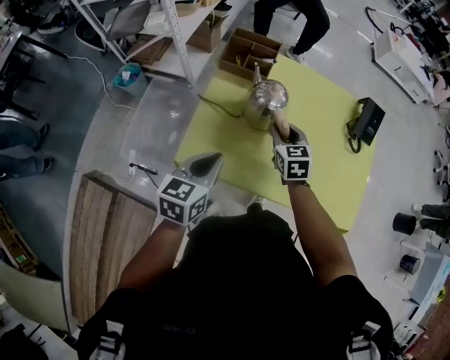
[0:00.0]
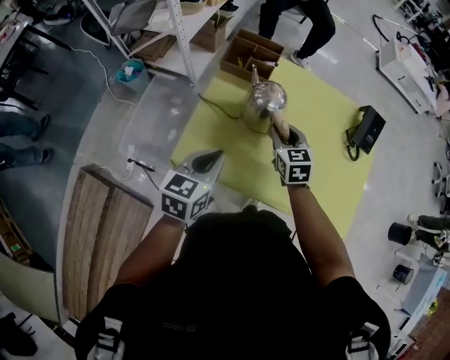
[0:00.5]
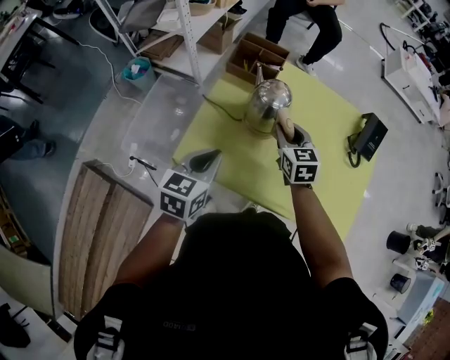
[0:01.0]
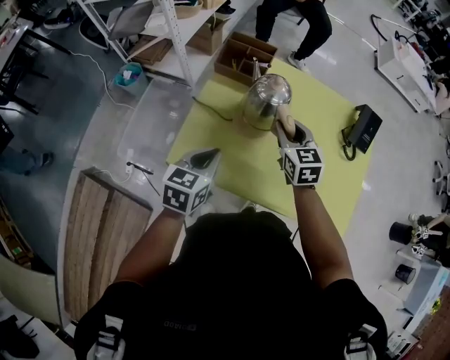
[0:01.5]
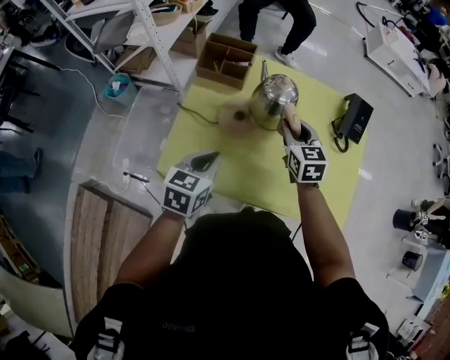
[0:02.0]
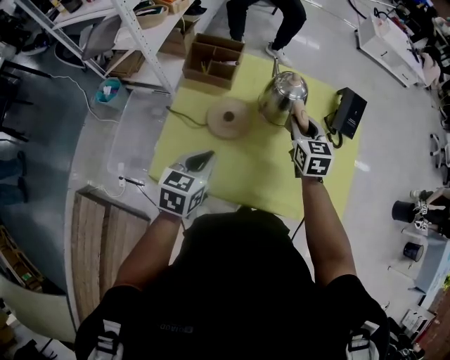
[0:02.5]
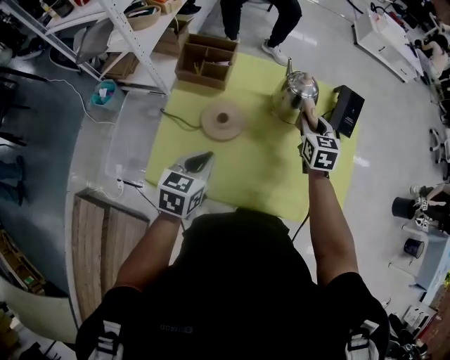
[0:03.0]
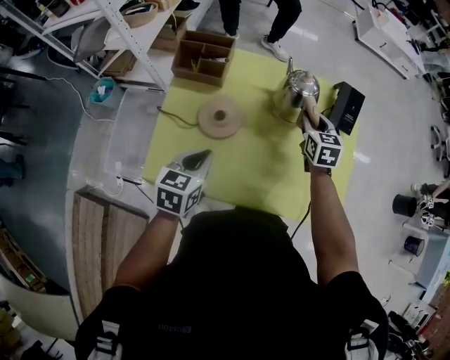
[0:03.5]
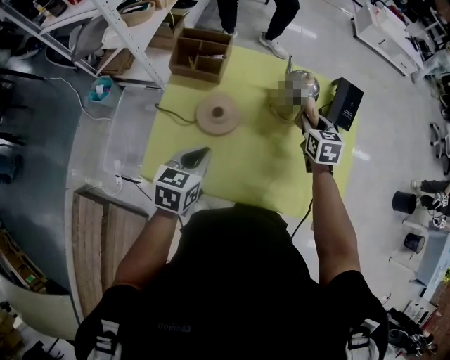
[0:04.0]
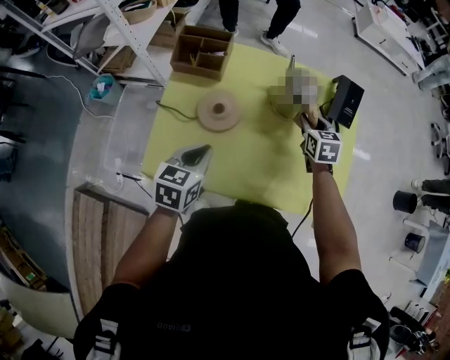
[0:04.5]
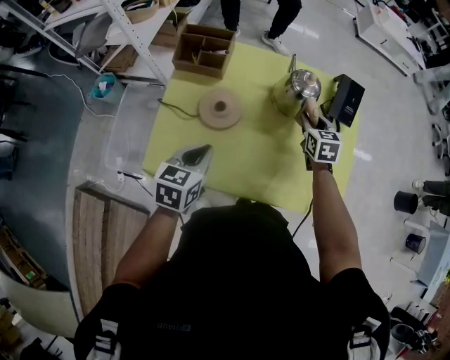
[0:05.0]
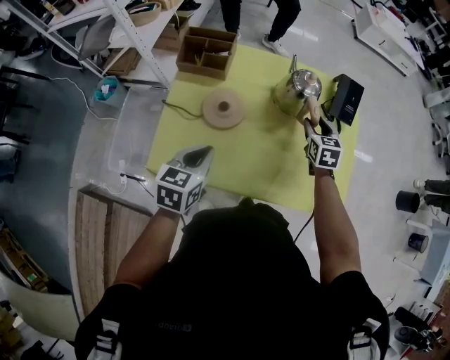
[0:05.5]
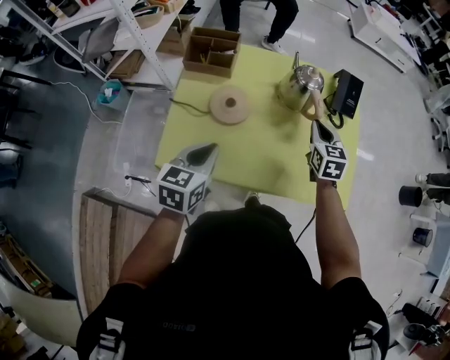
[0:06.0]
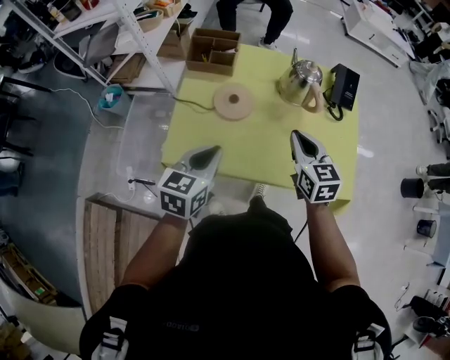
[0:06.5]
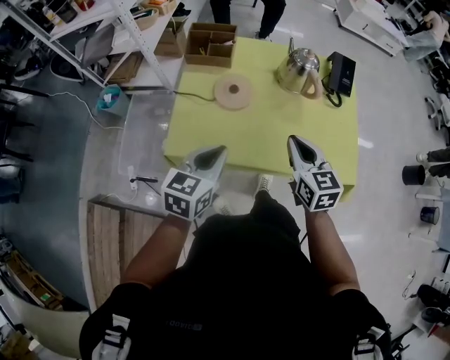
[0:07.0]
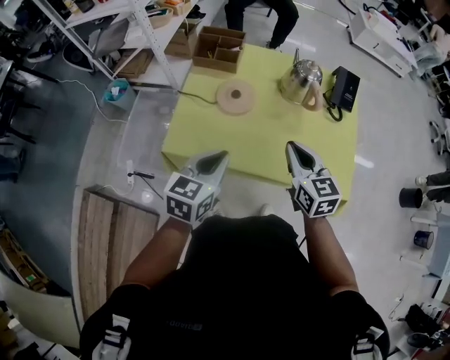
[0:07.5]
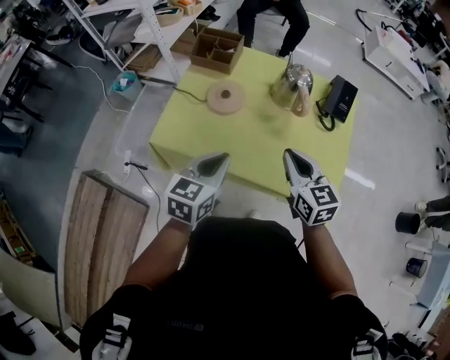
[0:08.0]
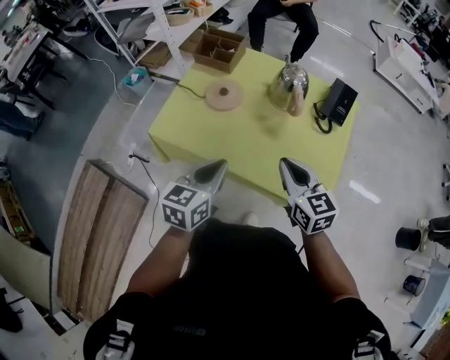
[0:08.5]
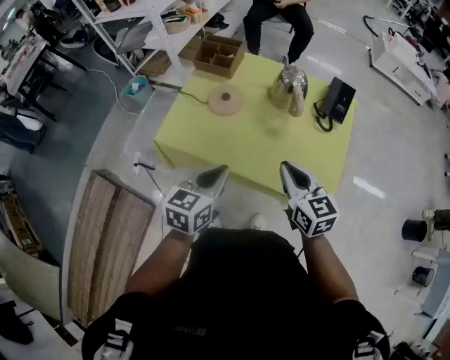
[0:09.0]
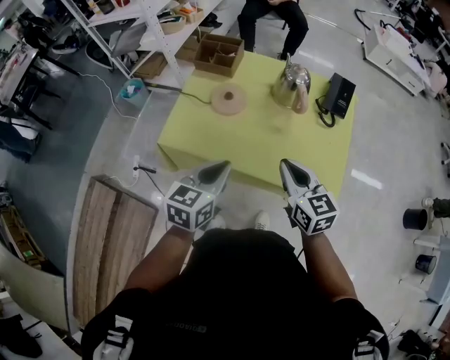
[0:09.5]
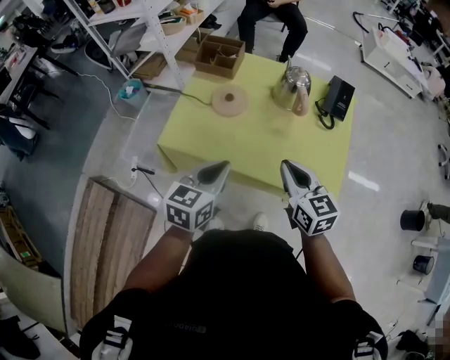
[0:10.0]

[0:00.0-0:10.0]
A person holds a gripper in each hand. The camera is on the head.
0:00.0 to 0:02.0: The two grippers go approximately 10 cm to the right.
0:02.0 to 0:04.0: The left gripper changes place by some 5 cm, while the right gripper goes about 15 cm to the right, forward and downward.
0:04.0 to 0:06.0: The right gripper shifts some 10 cm backward, and closes, while the left gripper travels backward by some 5 cm.
0:06.0 to 0:08.0: The left gripper heads to the right and backward, covering about 15 cm. Meanwhile the right gripper travels backward and upward by approximately 20 cm, and turns by about 30 degrees.
0:08.0 to 0:10.0: The left gripper shifts by some 5 cm; the right gripper heads backward, covering about 5 cm.

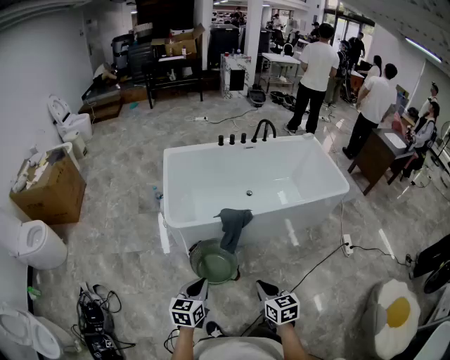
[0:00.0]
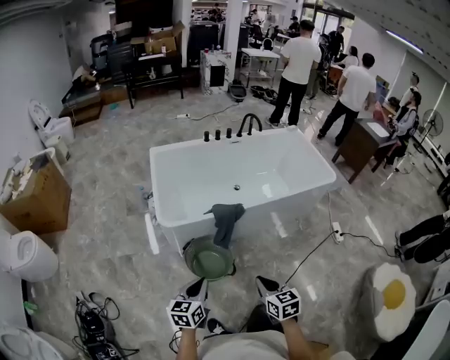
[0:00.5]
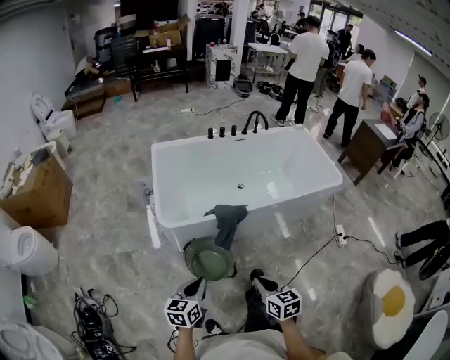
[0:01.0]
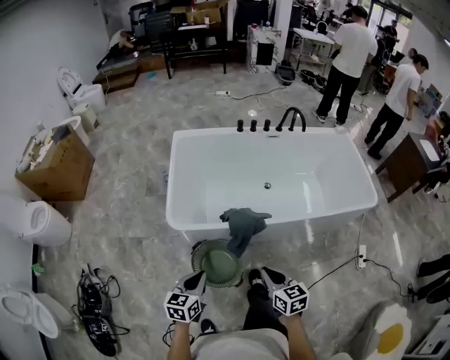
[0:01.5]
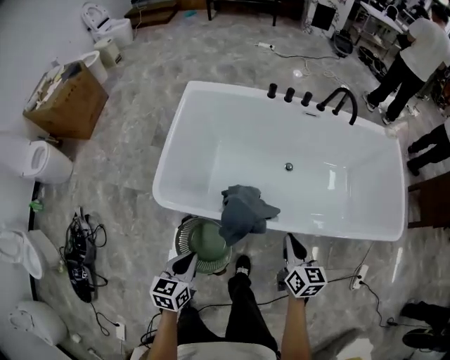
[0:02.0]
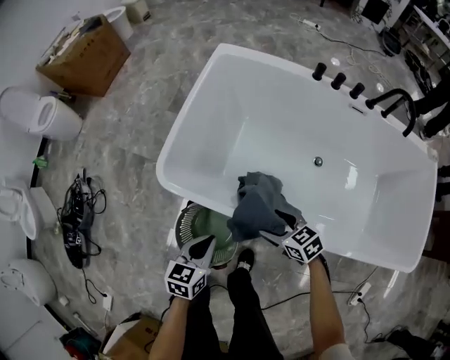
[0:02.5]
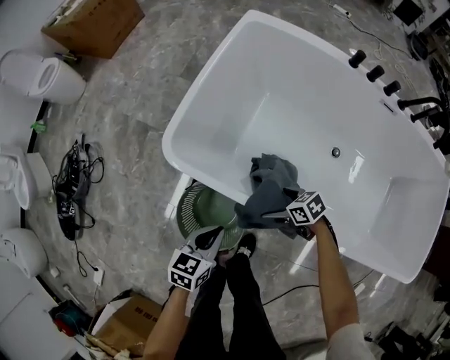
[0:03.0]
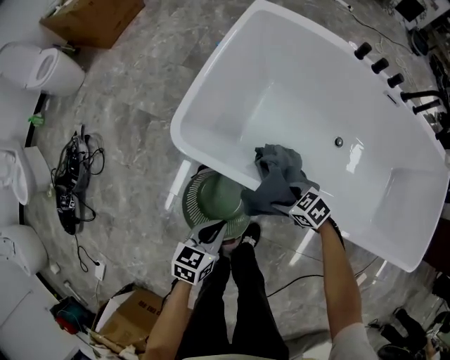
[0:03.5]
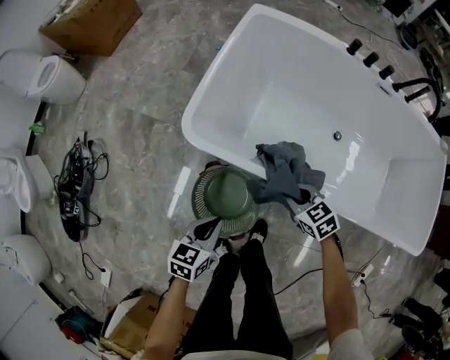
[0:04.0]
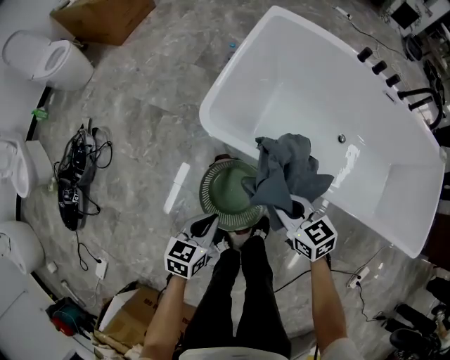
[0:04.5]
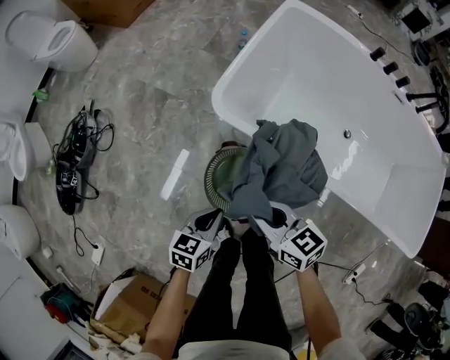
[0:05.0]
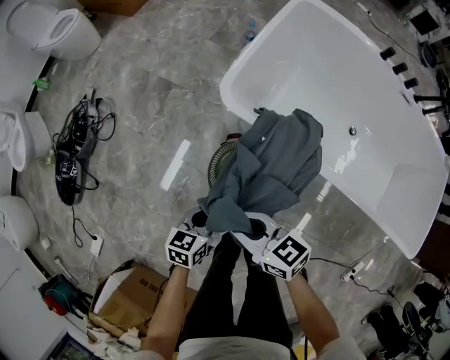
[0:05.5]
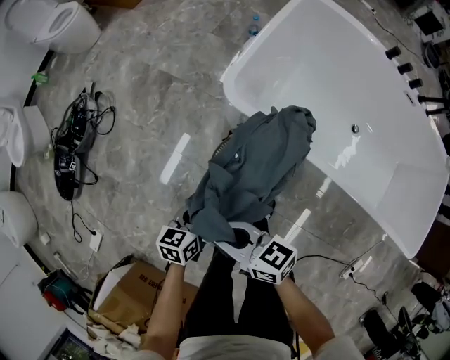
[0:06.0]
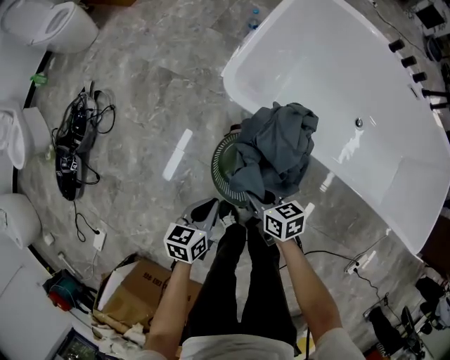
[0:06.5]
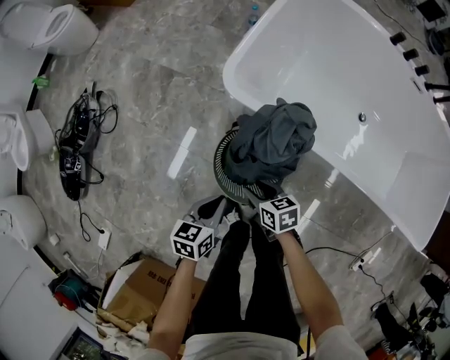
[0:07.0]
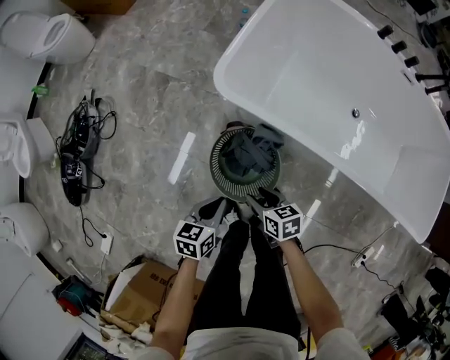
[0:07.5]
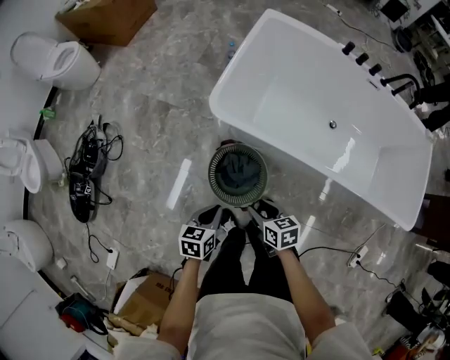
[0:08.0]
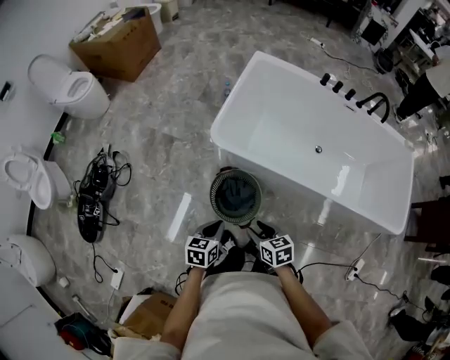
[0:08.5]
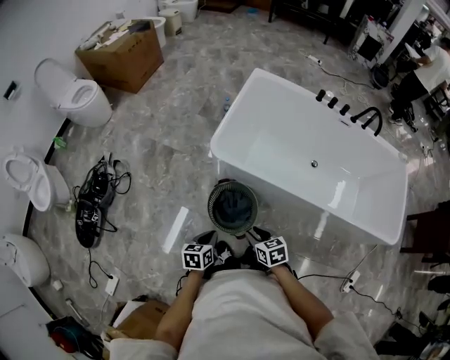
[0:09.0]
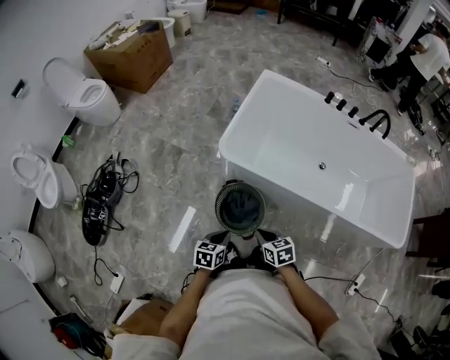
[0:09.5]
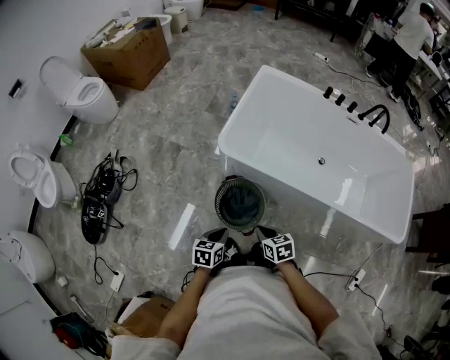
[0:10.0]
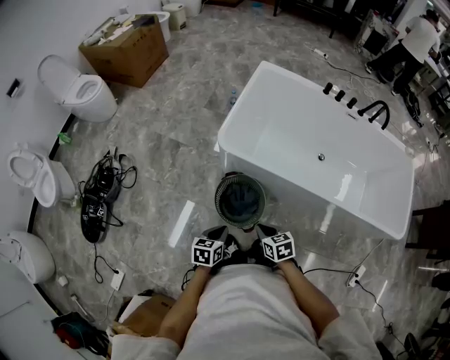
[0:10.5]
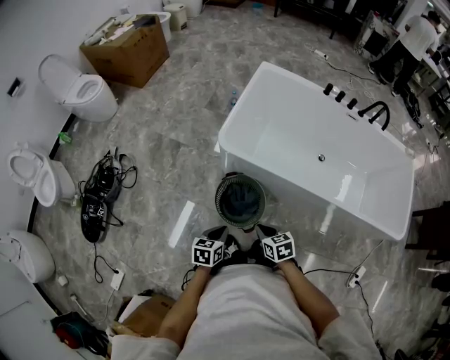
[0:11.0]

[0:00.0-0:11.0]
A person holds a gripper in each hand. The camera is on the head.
0:00.0 to 0:02.0: The right gripper travels forward by approximately 50 cm; the left gripper shifts roughly 30 cm forward and downward, and changes its angle by some 20 degrees.
0:02.0 to 0:03.5: The right gripper shifts about 30 cm downward, tips its fingers downward by approximately 30 degrees, and opens up; the left gripper heads downward, covering roughly 20 cm.
0:03.5 to 0:05.5: The right gripper goes some 35 cm to the left and upward, tilts its fingers roughly 30 degrees upward, and closes its fingers. The left gripper is displaced to the left by about 15 cm.
0:05.5 to 0:07.5: The right gripper shifts some 20 cm downward and to the right, and rotates approximately 30 degrees.
0:07.5 to 0:09.0: The right gripper is displaced upward by some 20 cm, while the left gripper moves upward and backward, some 15 cm.
0:09.0 to 0:11.0: The grippers make only small movements.

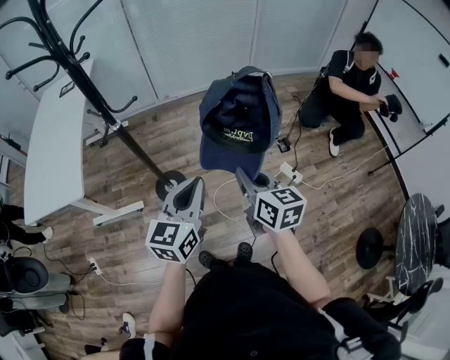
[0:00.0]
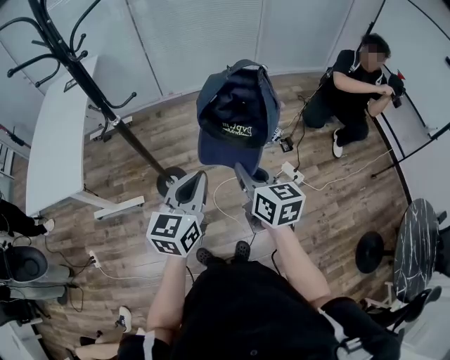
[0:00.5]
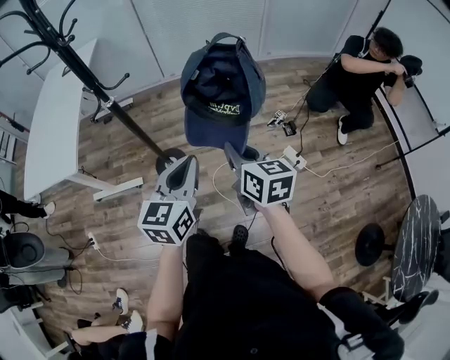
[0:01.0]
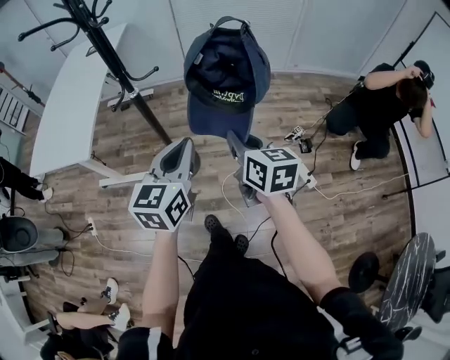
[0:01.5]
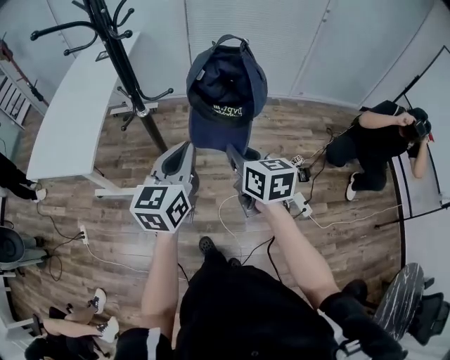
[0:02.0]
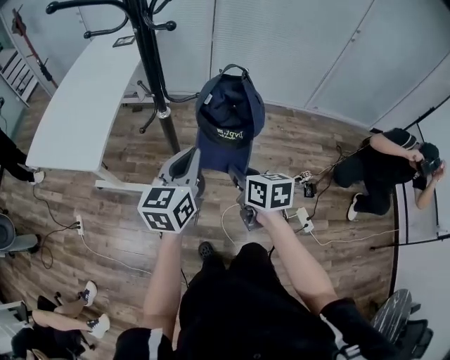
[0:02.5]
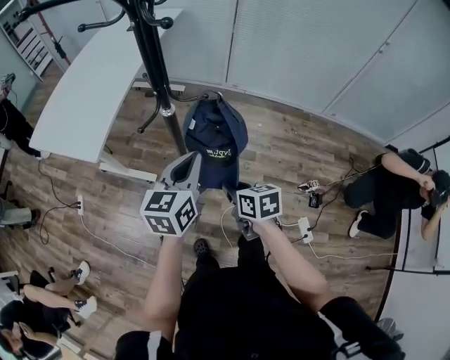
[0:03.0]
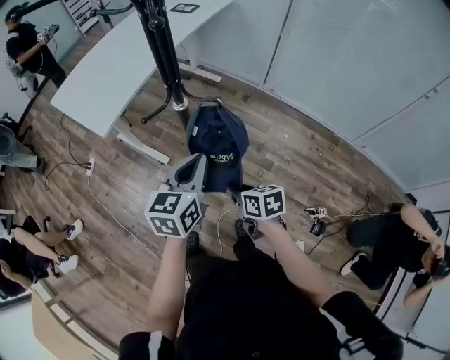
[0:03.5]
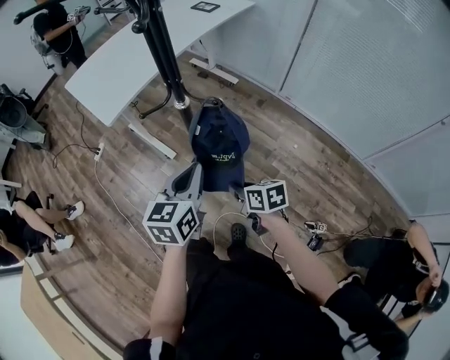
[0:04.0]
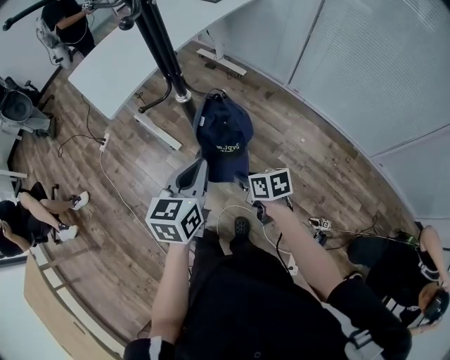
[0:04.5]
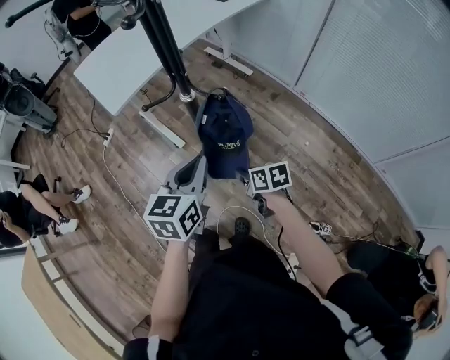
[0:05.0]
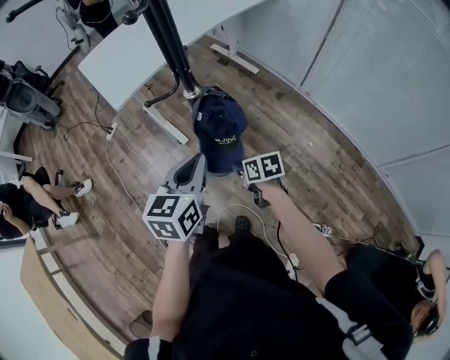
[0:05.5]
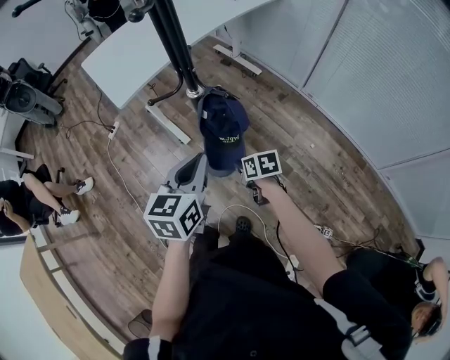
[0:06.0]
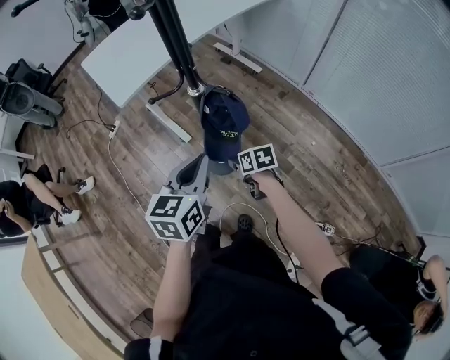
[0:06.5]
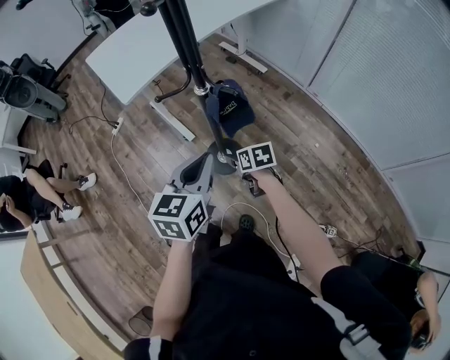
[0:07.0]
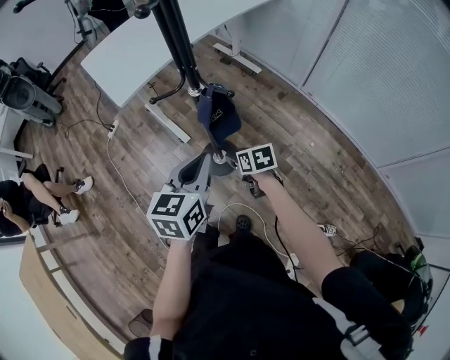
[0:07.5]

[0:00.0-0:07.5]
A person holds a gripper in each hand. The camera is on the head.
0:00.0 to 0:02.0: The two grippers go about 15 cm forward and to the left.
0:02.0 to 0:04.0: The left gripper travels downward by about 10 cm, and rotates about 40 degrees. The right gripper is displaced downward by about 20 cm, and swivels some 60 degrees.
0:04.0 to 0:05.5: The right gripper heads forward and downward, covering roughly 10 cm.
0:05.5 to 0:07.5: The right gripper opens its fingers.
